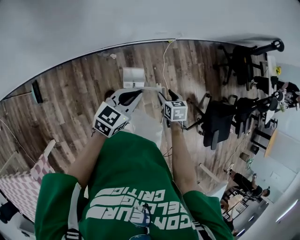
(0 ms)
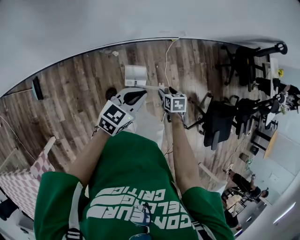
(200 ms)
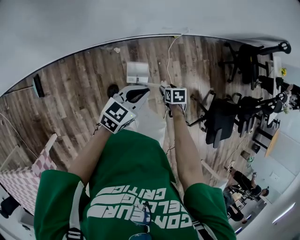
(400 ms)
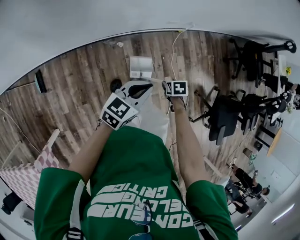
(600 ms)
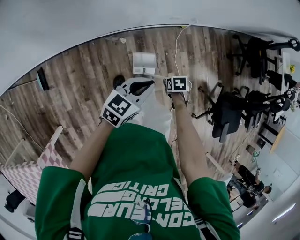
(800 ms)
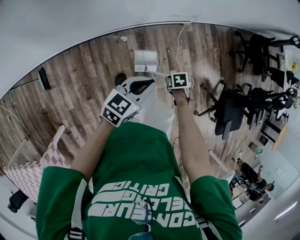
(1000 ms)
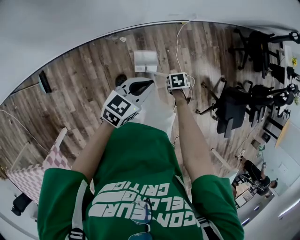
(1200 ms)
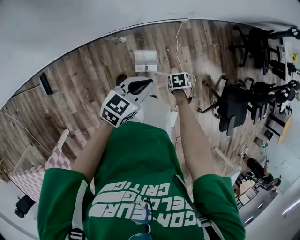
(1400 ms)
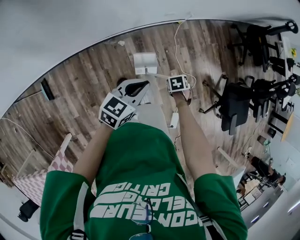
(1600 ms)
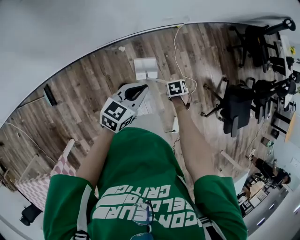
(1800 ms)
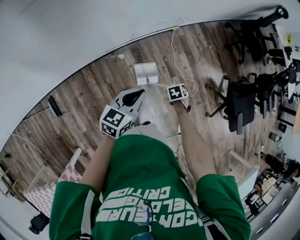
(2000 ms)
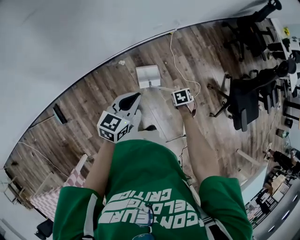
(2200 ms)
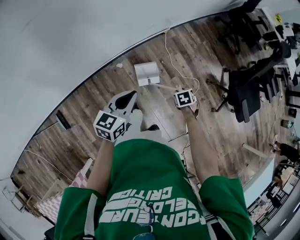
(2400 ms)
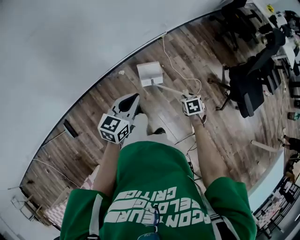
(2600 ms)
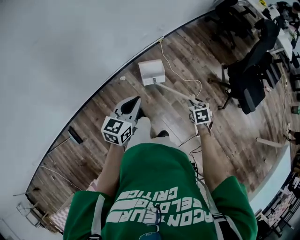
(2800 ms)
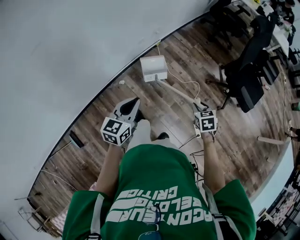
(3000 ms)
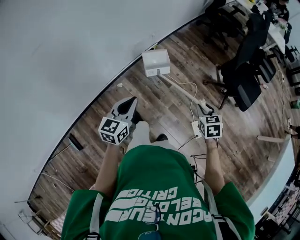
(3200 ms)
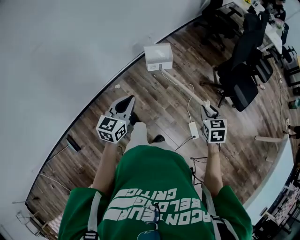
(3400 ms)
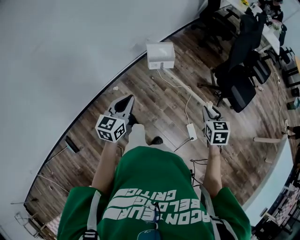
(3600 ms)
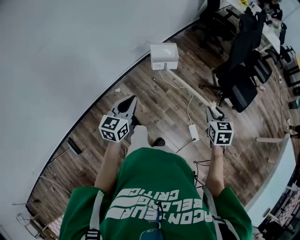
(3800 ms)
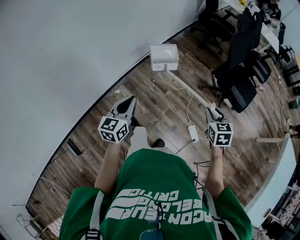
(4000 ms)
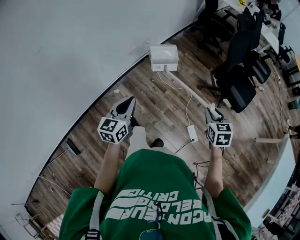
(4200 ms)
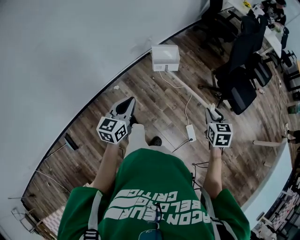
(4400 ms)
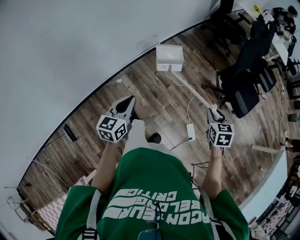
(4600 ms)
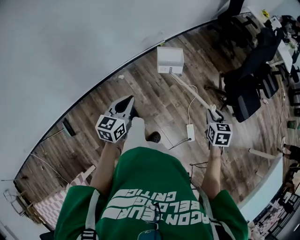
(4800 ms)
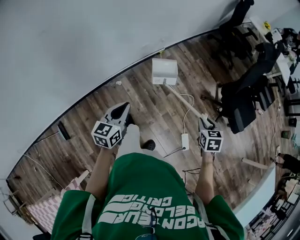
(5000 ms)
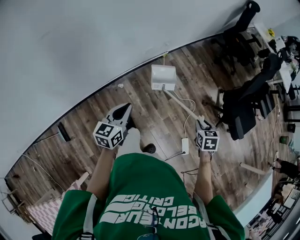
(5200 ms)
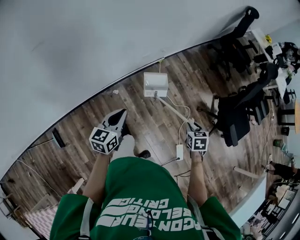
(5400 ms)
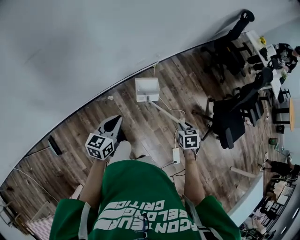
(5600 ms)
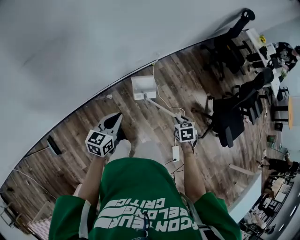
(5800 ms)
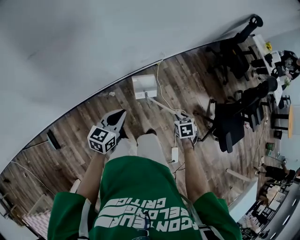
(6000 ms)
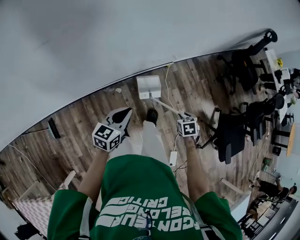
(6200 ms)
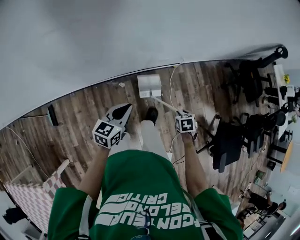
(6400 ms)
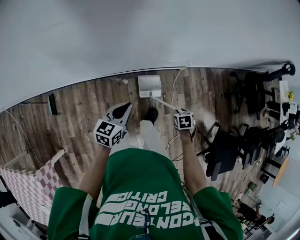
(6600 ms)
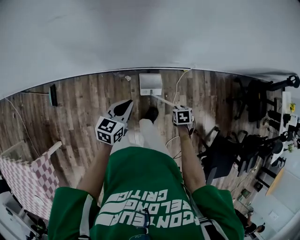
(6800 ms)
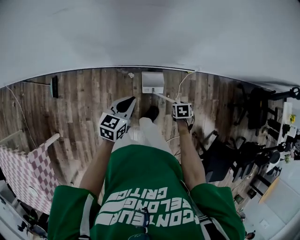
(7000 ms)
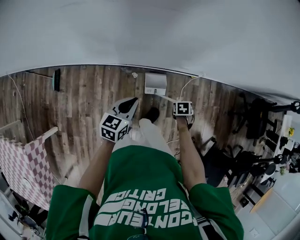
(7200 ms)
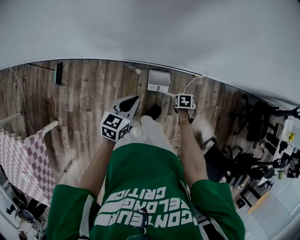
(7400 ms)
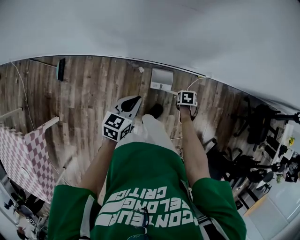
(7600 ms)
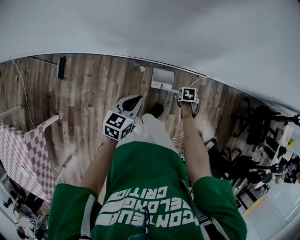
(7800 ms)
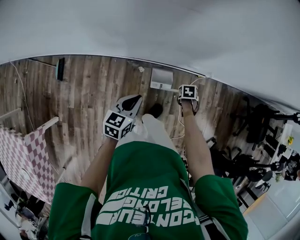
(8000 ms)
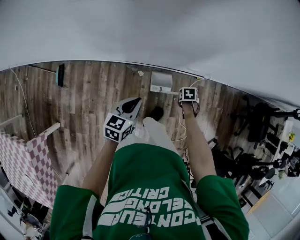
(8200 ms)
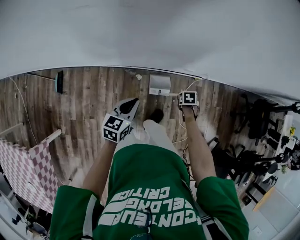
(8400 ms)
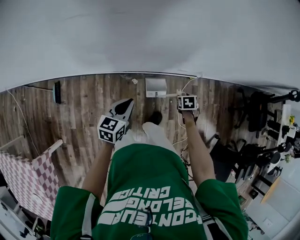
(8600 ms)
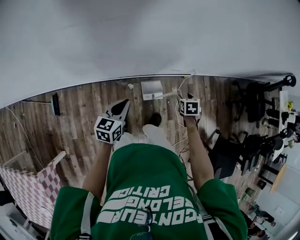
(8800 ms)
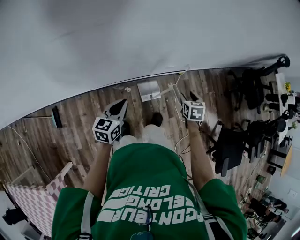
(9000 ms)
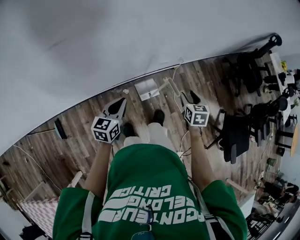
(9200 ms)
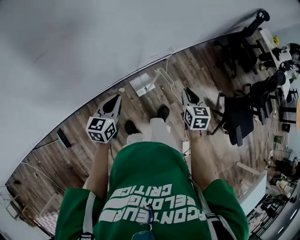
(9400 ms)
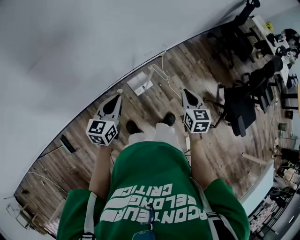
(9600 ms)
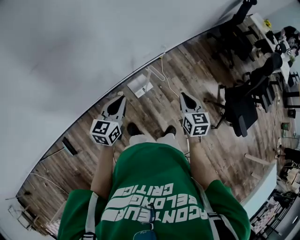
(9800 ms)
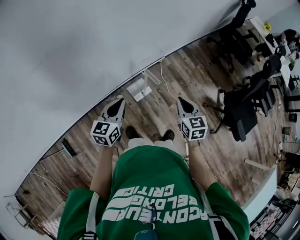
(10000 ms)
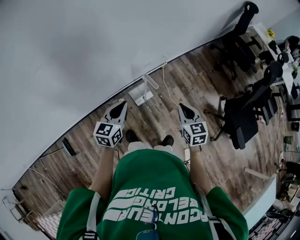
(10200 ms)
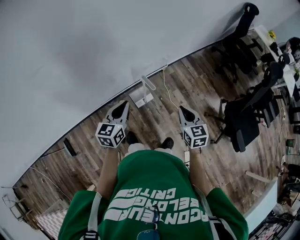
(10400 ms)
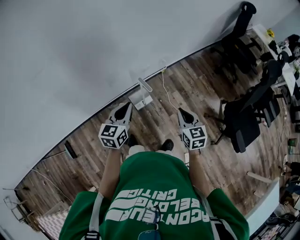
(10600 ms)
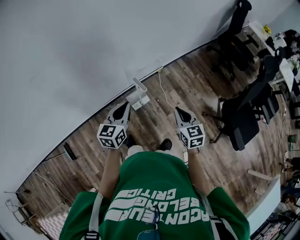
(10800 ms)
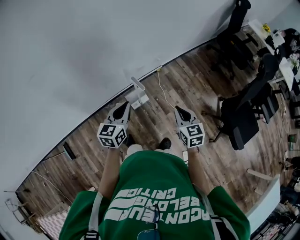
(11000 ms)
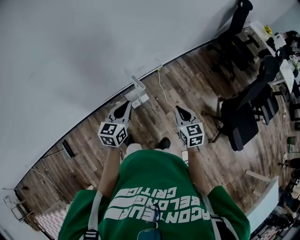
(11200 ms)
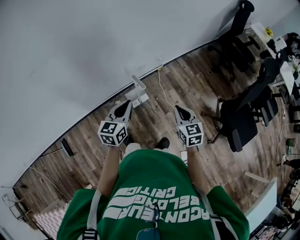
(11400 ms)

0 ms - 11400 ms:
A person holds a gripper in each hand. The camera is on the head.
0 ms - 1400 ms: The right gripper shifts some 10 cm downward, rotates some 30 degrees, and closes up.
1400 ms - 2800 ms: The right gripper shifts by approximately 30 cm, and rotates approximately 30 degrees. The left gripper changes place by about 15 cm.
2800 ms - 4200 ms: The left gripper is displaced to the right by approximately 10 cm. The right gripper heads upward and to the right, covering about 25 cm, and turns by approximately 20 degrees.
4200 ms - 5600 ms: The grippers both shift to the left, forward and downward by about 25 cm. The right gripper swivels roughly 20 degrees.
5600 ms - 7200 ms: The left gripper changes place by some 10 cm, and swivels approximately 30 degrees, while the right gripper changes place by about 35 cm, and rotates approximately 30 degrees.
7200 ms - 8600 ms: The left gripper moves approximately 5 cm, while the right gripper shifts by some 5 cm, and opens up.
8600 ms - 10000 ms: The left gripper shifts by about 15 cm, and rotates some 30 degrees. The right gripper moves upward, approximately 25 cm, tips its fingers upward by some 40 degrees, and closes up.
10000 ms - 11400 ms: Both grippers travel together to the right, about 10 cm.

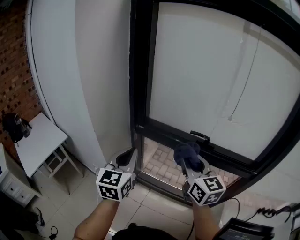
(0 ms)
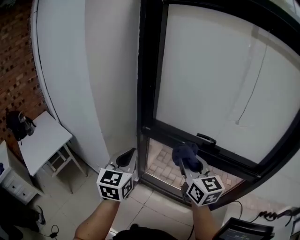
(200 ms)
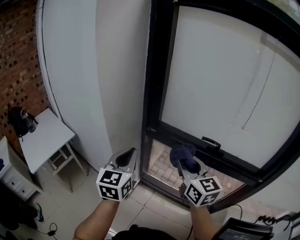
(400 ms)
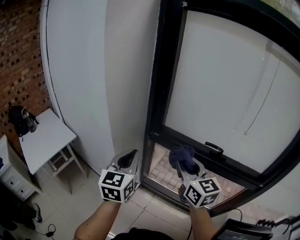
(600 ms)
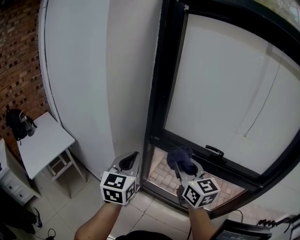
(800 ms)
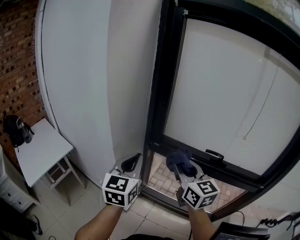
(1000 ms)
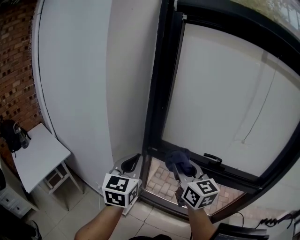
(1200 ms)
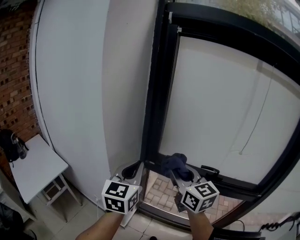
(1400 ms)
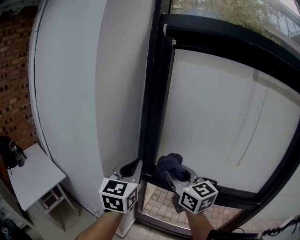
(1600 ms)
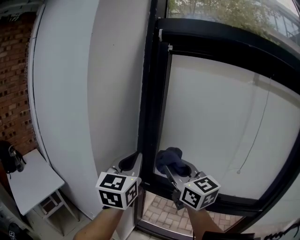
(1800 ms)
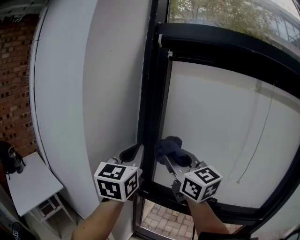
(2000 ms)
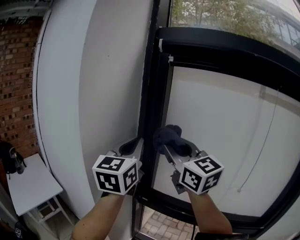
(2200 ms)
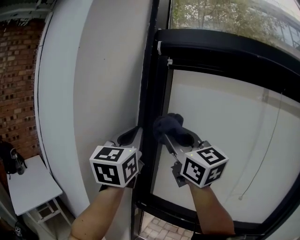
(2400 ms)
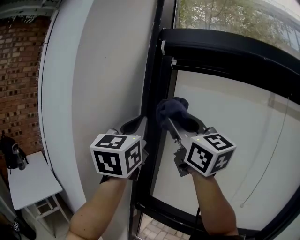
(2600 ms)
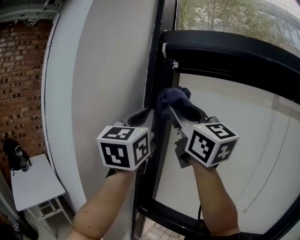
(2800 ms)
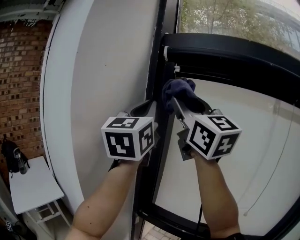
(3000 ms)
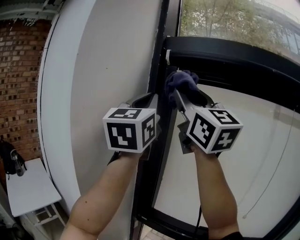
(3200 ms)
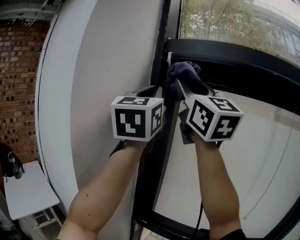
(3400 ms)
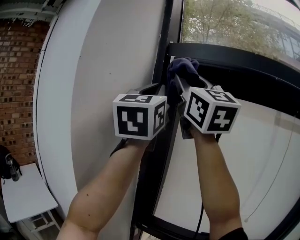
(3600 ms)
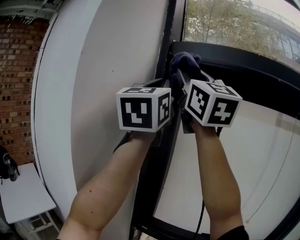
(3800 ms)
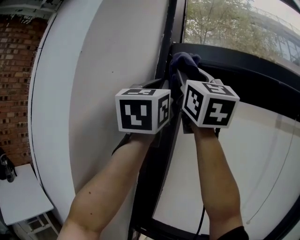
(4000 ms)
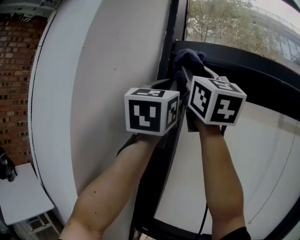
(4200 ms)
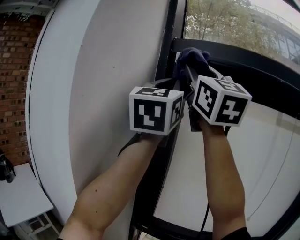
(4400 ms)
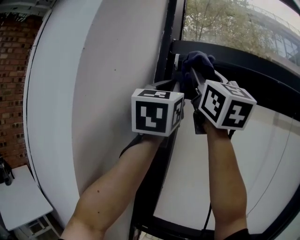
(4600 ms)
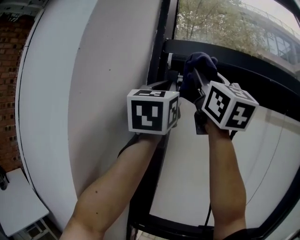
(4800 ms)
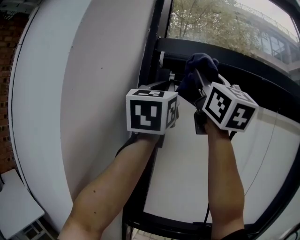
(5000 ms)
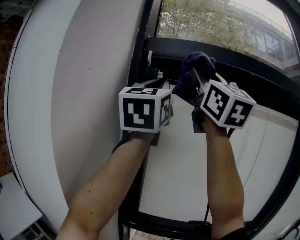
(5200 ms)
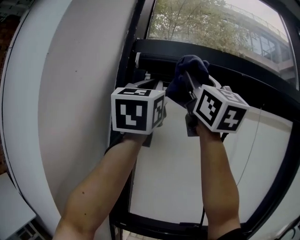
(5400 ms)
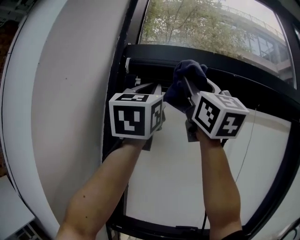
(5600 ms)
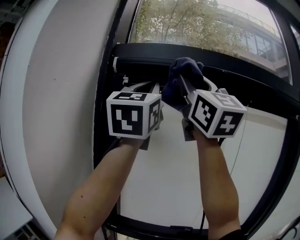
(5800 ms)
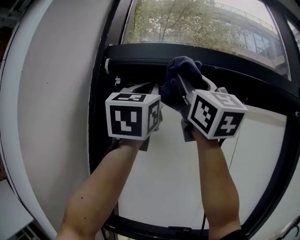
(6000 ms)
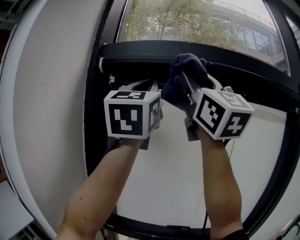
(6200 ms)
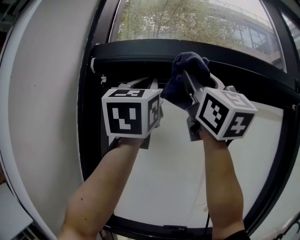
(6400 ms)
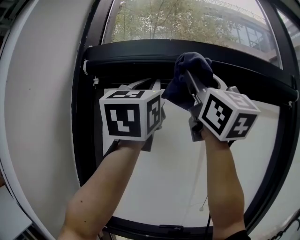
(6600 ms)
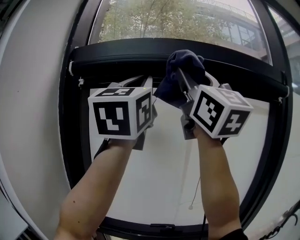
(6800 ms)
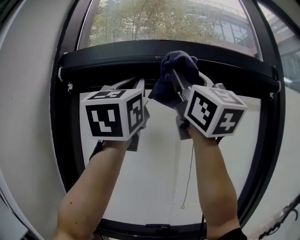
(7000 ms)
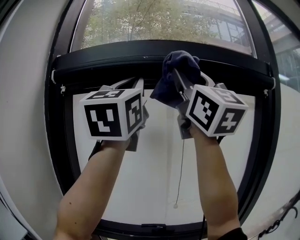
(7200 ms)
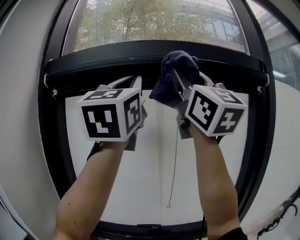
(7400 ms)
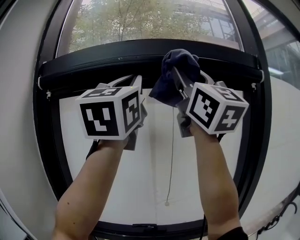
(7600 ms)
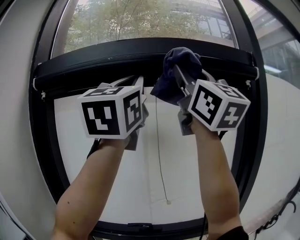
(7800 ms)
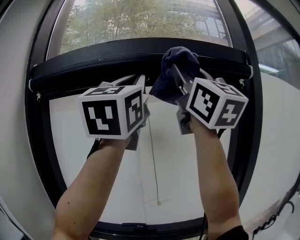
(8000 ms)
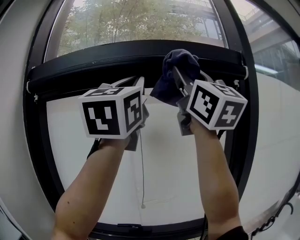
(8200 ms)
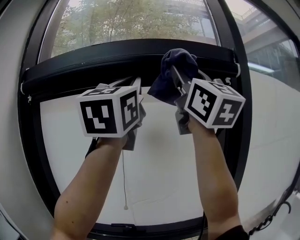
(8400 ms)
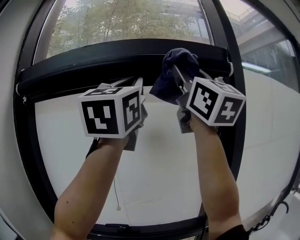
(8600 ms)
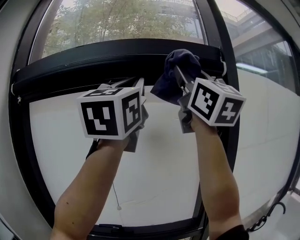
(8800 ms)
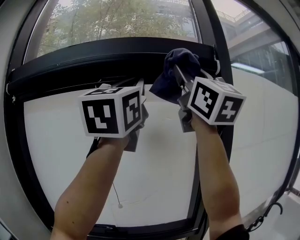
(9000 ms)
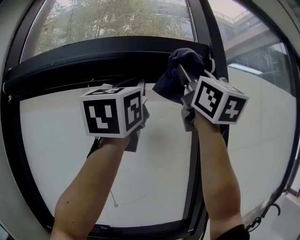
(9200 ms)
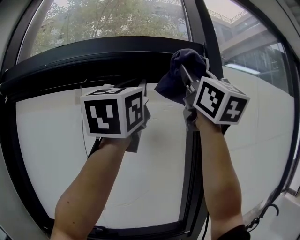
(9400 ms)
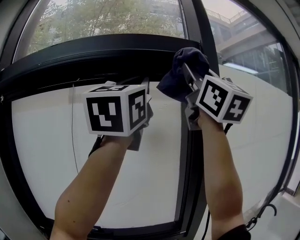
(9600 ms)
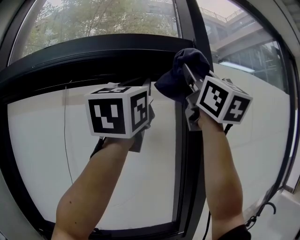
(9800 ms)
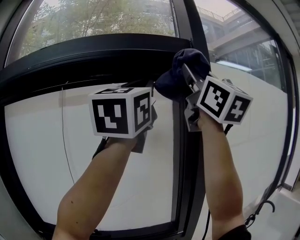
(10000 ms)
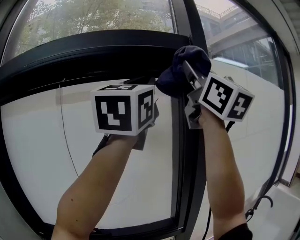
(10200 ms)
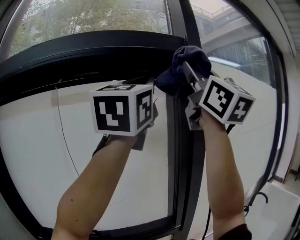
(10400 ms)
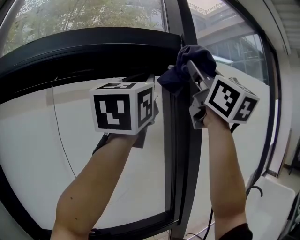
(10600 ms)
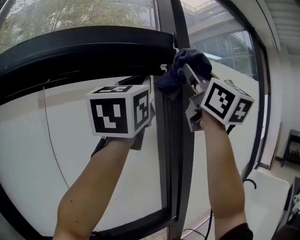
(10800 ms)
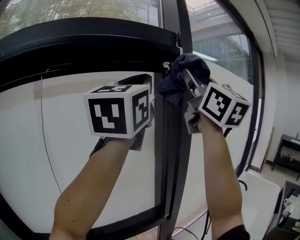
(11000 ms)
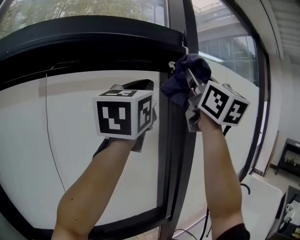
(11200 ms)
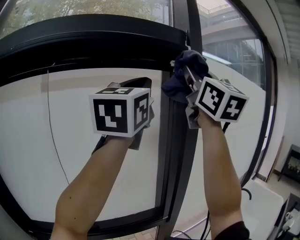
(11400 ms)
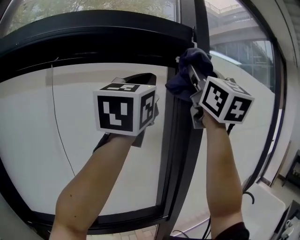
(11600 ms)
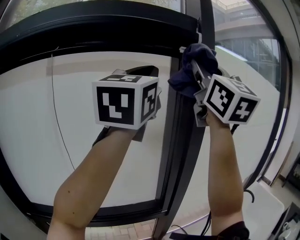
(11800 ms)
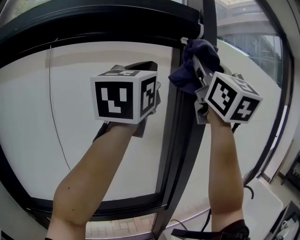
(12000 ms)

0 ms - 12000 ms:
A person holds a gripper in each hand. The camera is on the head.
0 ms - 1600 ms: The right gripper goes about 20 cm to the left, forward and upward. The left gripper goes about 15 cm upward, forward and to the left.
1600 ms - 3000 ms: The right gripper shifts approximately 35 cm upward, and changes its angle by some 30 degrees; the left gripper goes roughly 35 cm upward and forward, and changes its angle by some 20 degrees.
3000 ms - 4400 ms: The grippers both shift upward by about 10 cm. The right gripper changes its angle by approximately 20 degrees.
4400 ms - 6000 ms: Both grippers move to the right, roughly 15 cm.
6000 ms - 7600 ms: The grippers move only a little.
7600 ms - 9000 ms: The two grippers go some 15 cm to the right.
9000 ms - 10400 ms: The two grippers go approximately 10 cm to the right.
10400 ms - 12000 ms: Both grippers move downward, approximately 5 cm.
